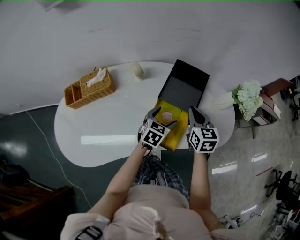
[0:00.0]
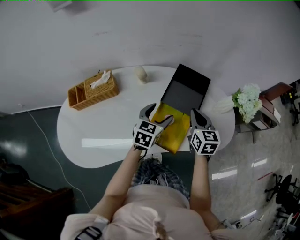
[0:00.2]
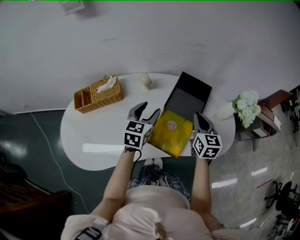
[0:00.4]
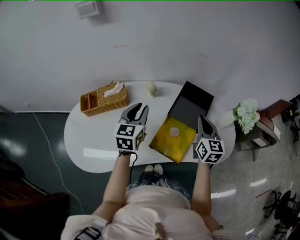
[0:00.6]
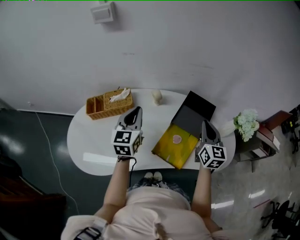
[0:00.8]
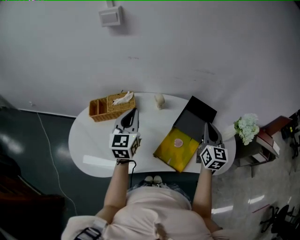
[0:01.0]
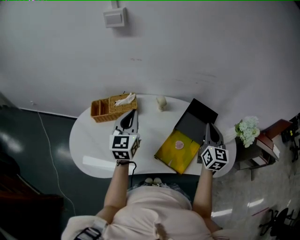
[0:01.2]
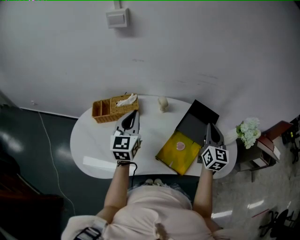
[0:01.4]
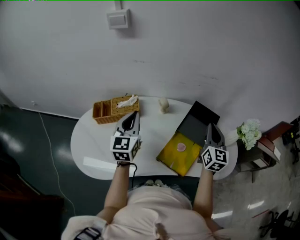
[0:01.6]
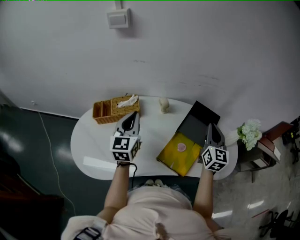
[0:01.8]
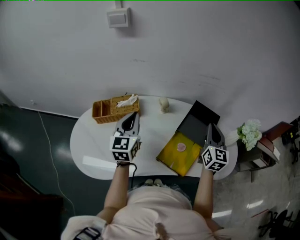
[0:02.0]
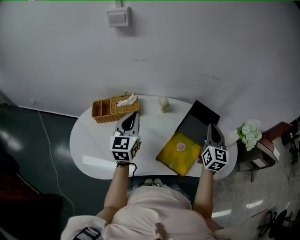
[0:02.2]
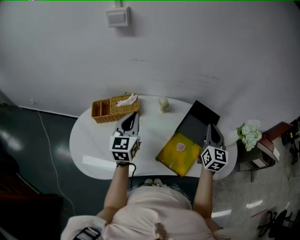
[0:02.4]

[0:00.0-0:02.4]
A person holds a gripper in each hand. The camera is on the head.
0:00.0 to 0:01.2: The right gripper goes approximately 15 cm upward, and changes its angle by about 20 degrees; the left gripper travels to the left and upward by about 35 cm, tips its fingers upward by some 30 degrees, and closes up.
0:01.2 to 0:02.4: The grippers make only small movements.

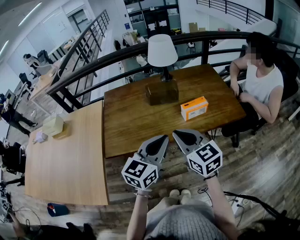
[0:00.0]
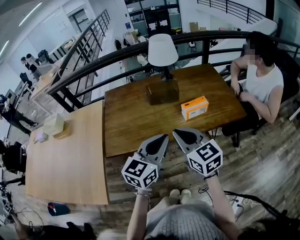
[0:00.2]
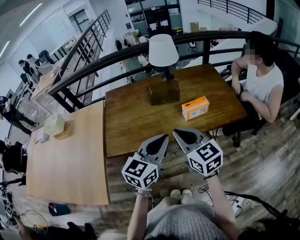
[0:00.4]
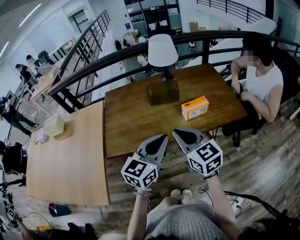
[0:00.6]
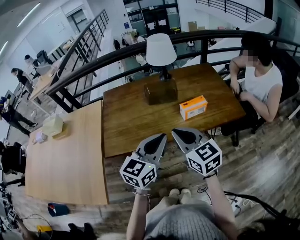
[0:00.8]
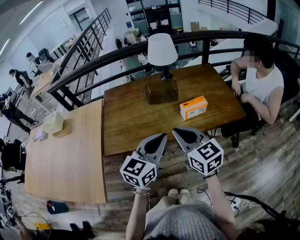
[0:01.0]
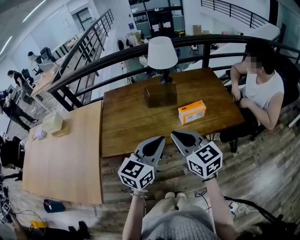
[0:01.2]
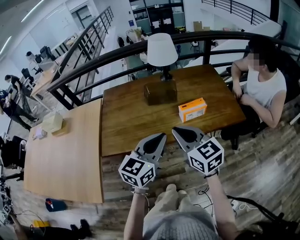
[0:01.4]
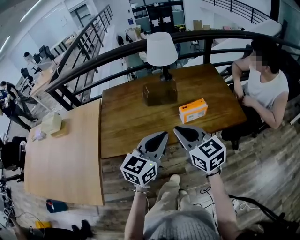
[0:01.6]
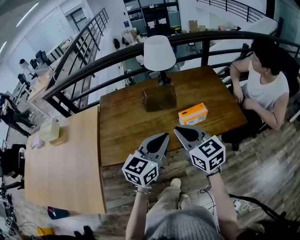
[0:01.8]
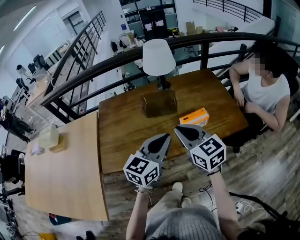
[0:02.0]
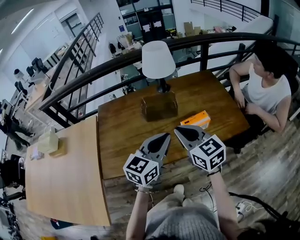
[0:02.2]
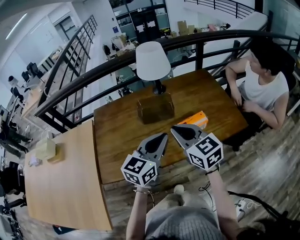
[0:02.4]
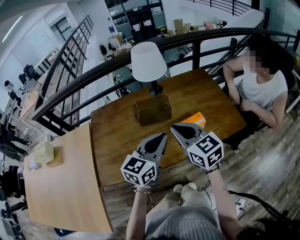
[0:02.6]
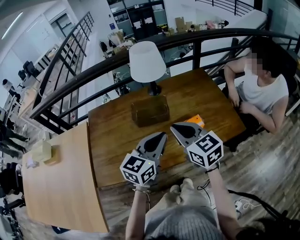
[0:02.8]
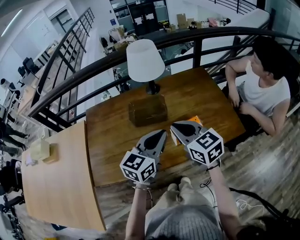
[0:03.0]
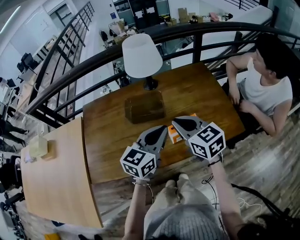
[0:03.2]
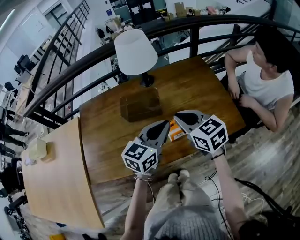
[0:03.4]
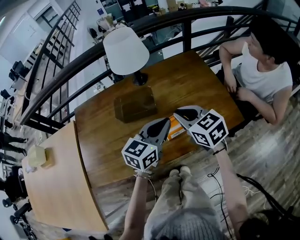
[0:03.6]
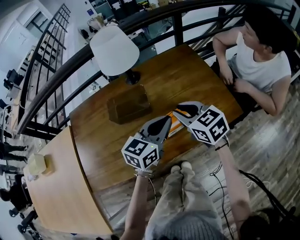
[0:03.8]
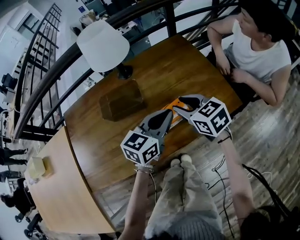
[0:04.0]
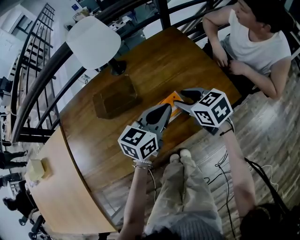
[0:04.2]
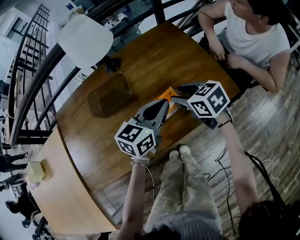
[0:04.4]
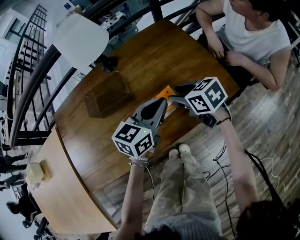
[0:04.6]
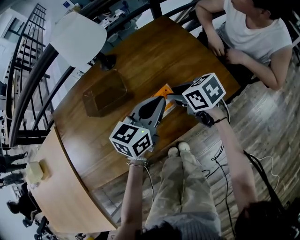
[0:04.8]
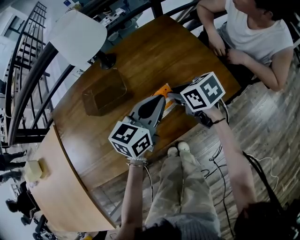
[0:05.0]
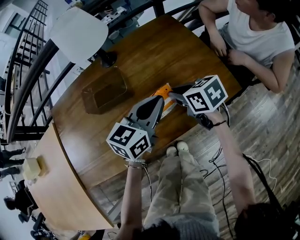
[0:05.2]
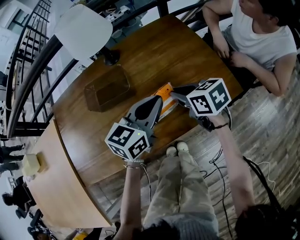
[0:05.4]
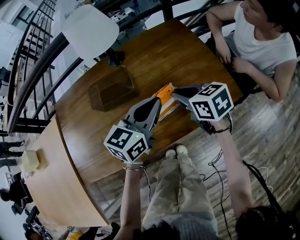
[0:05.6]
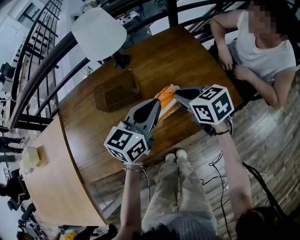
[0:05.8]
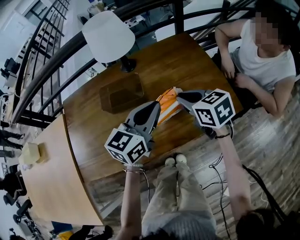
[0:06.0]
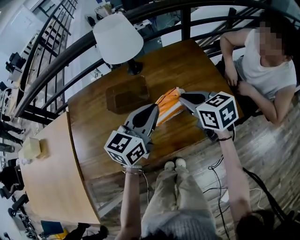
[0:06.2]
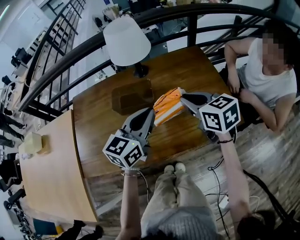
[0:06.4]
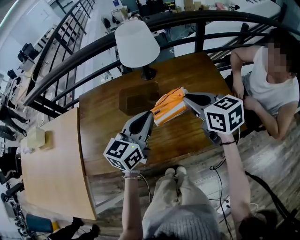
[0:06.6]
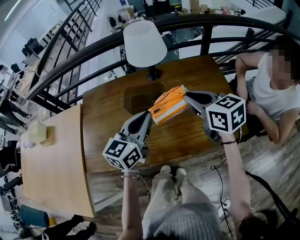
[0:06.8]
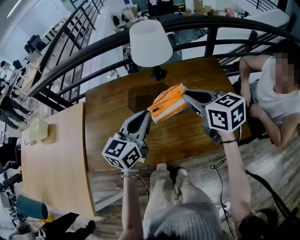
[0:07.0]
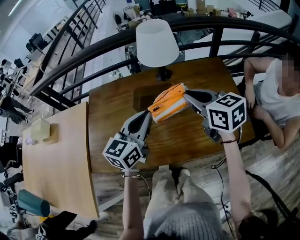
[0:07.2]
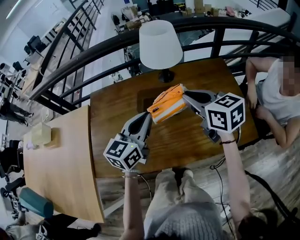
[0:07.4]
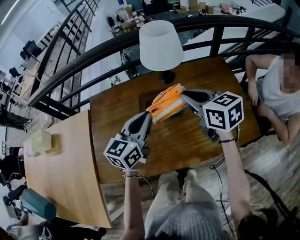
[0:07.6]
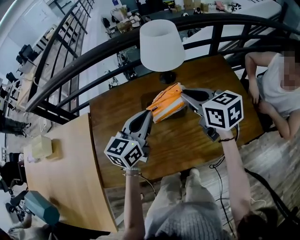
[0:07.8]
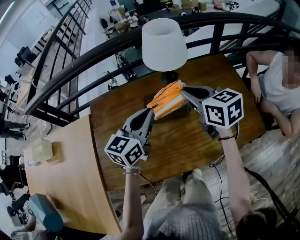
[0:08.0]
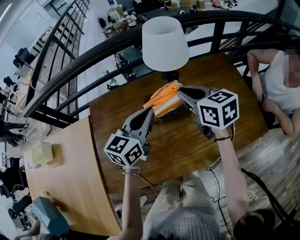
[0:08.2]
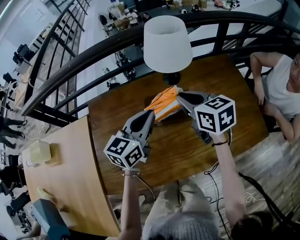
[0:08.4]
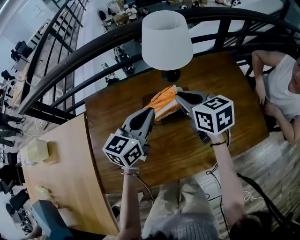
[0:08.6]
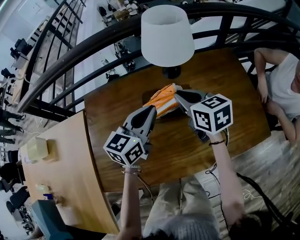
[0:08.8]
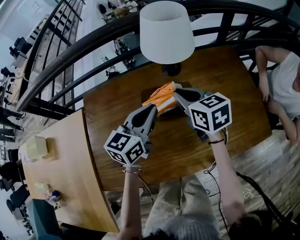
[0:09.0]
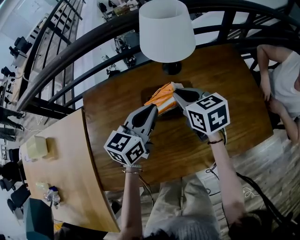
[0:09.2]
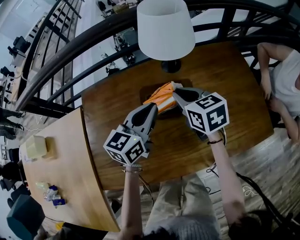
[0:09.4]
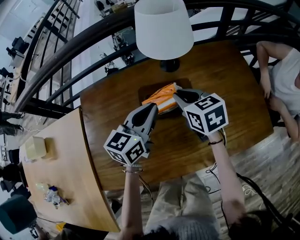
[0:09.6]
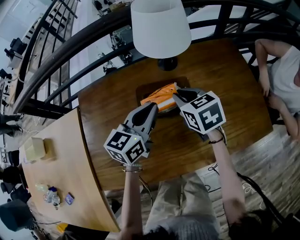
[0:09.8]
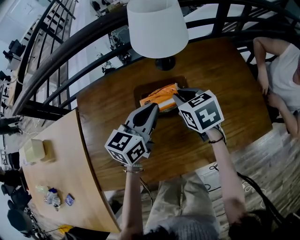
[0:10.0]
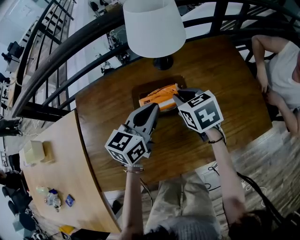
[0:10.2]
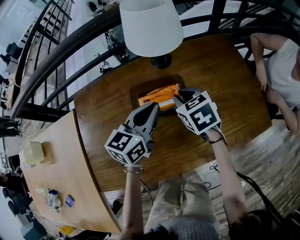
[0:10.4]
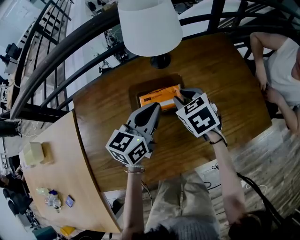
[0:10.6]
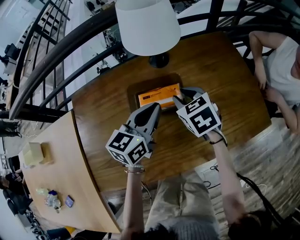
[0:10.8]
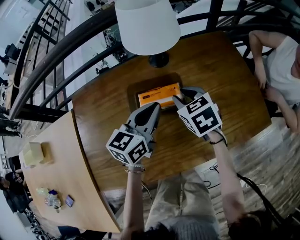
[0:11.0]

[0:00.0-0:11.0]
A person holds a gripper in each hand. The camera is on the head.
0:00.0 to 0:01.6: There are only small adjustments of the grippers.
0:01.6 to 0:03.2: The grippers both shift forward by roughly 15 cm.
0:03.2 to 0:04.8: The right gripper travels downward and to the right by approximately 20 cm, turns by some 30 degrees, and opens. Meanwhile the left gripper heads to the right and downward, covering approximately 15 cm.
0:04.8 to 0:06.2: The left gripper shifts some 10 cm upward and to the left. Meanwhile the right gripper is displaced upward by approximately 10 cm, and closes its fingers.
0:06.2 to 0:07.8: The right gripper heads to the left, forward and upward, covering roughly 15 cm. Meanwhile the left gripper shifts roughly 20 cm to the left and forward.
0:07.8 to 0:09.4: The left gripper goes approximately 5 cm downward. Meanwhile the right gripper shifts roughly 10 cm downward and to the left.
0:09.4 to 0:11.0: The right gripper moves some 5 cm, while the left gripper moves to the right, some 5 cm.

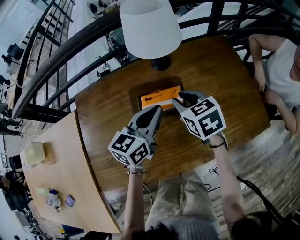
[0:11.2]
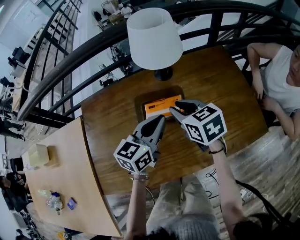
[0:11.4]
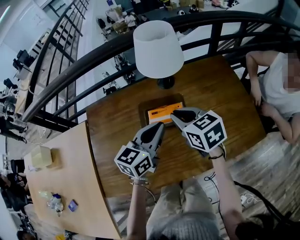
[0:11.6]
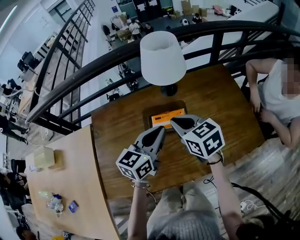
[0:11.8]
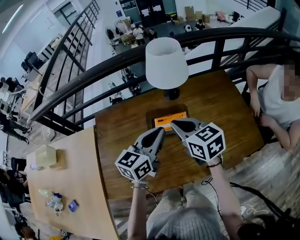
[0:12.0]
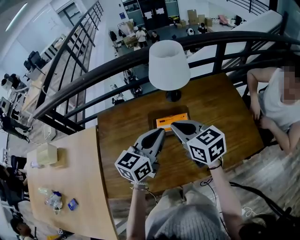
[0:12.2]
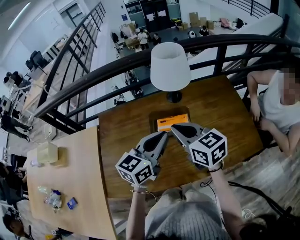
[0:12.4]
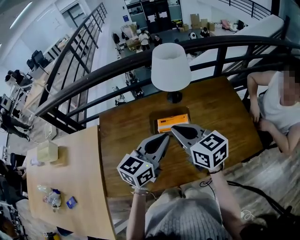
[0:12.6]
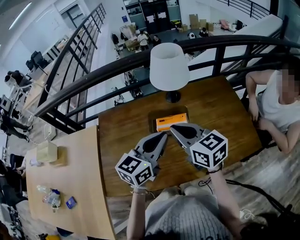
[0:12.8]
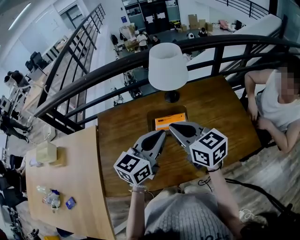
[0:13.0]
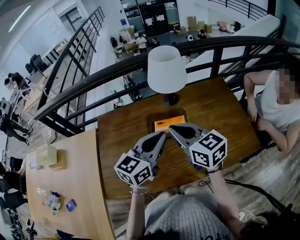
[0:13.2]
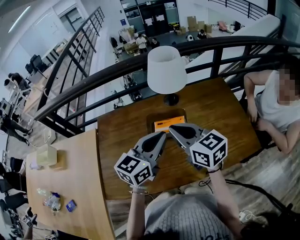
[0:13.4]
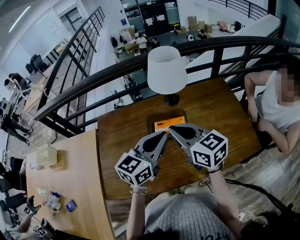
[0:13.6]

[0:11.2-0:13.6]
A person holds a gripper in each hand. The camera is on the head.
0:11.2 to 0:12.4: The two grippers go roughly 15 cm upward and backward. The right gripper rotates approximately 20 degrees, and closes.
0:12.4 to 0:13.6: The grippers move only a little.

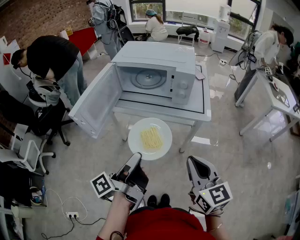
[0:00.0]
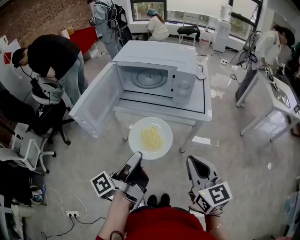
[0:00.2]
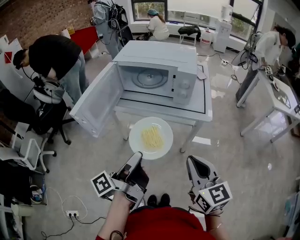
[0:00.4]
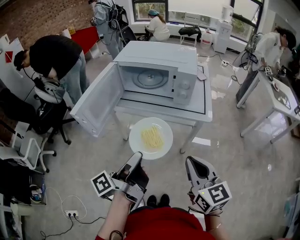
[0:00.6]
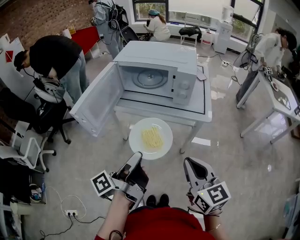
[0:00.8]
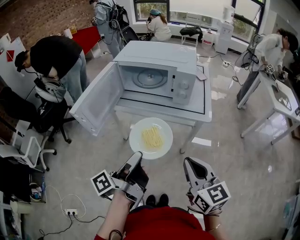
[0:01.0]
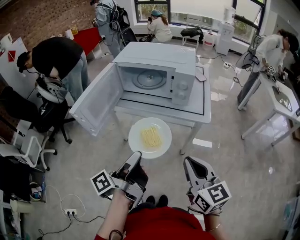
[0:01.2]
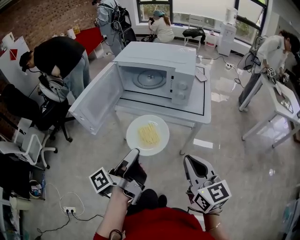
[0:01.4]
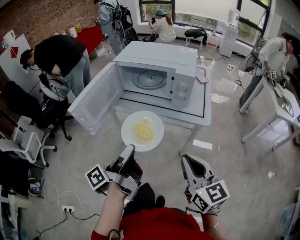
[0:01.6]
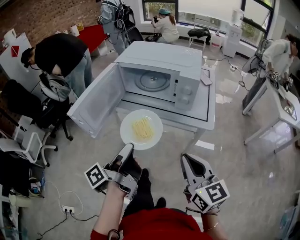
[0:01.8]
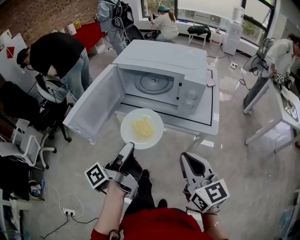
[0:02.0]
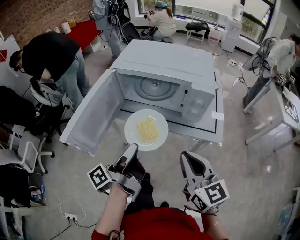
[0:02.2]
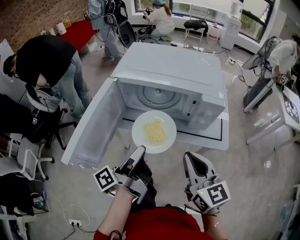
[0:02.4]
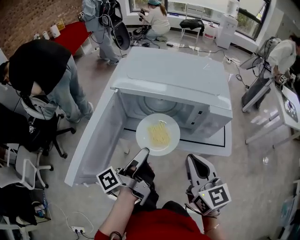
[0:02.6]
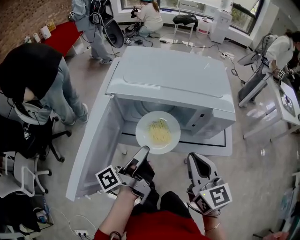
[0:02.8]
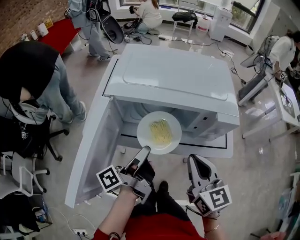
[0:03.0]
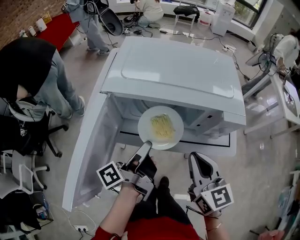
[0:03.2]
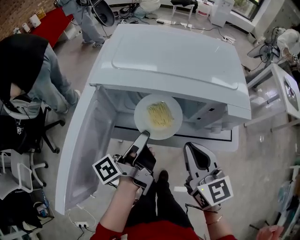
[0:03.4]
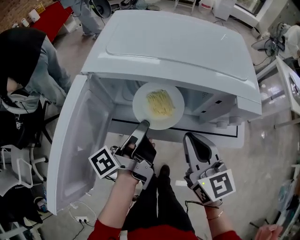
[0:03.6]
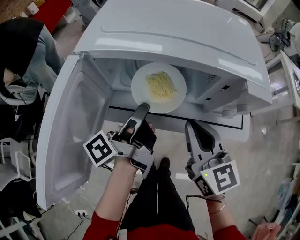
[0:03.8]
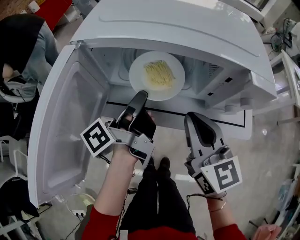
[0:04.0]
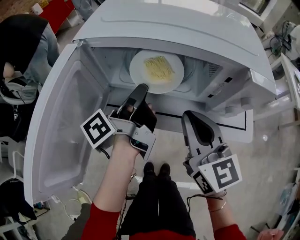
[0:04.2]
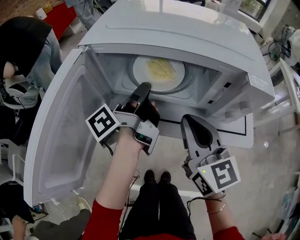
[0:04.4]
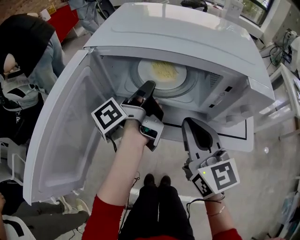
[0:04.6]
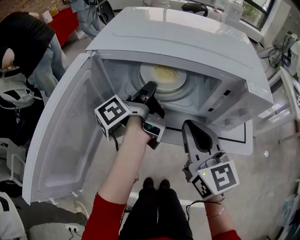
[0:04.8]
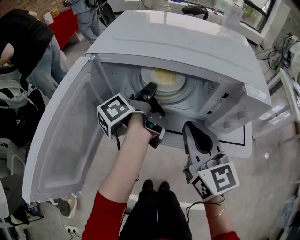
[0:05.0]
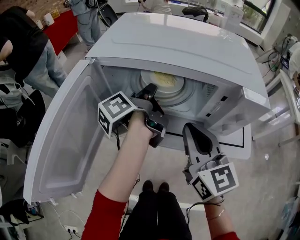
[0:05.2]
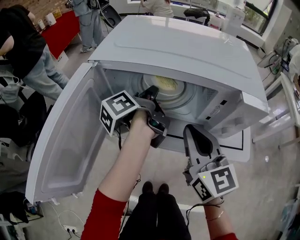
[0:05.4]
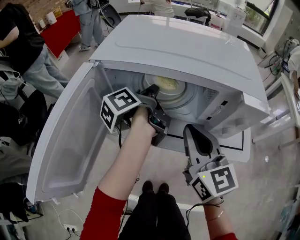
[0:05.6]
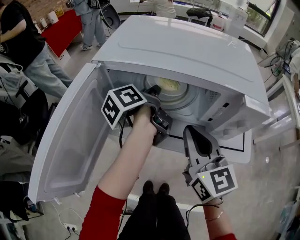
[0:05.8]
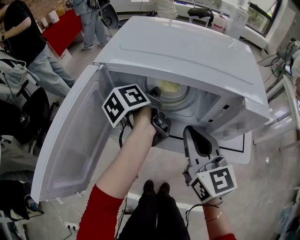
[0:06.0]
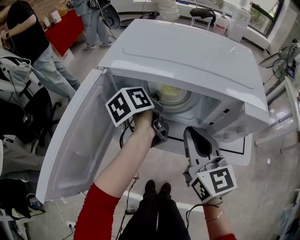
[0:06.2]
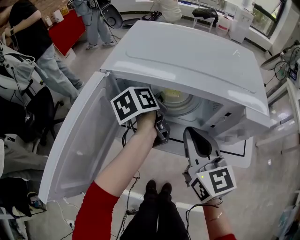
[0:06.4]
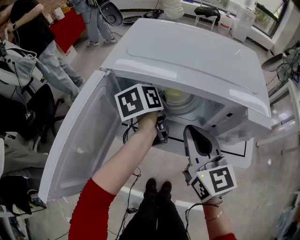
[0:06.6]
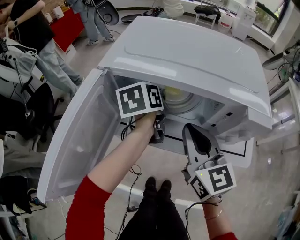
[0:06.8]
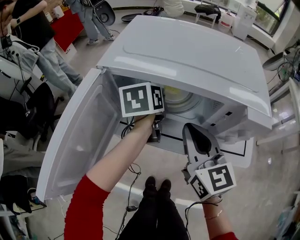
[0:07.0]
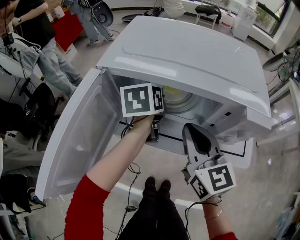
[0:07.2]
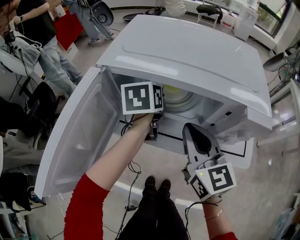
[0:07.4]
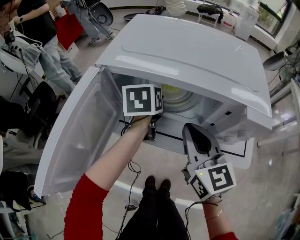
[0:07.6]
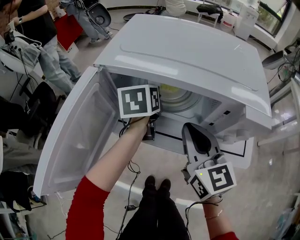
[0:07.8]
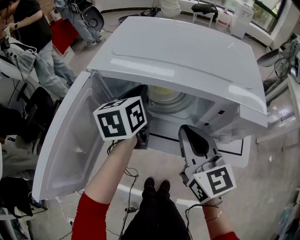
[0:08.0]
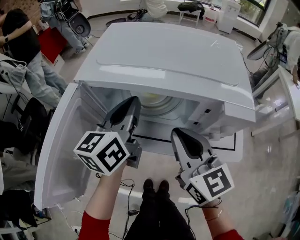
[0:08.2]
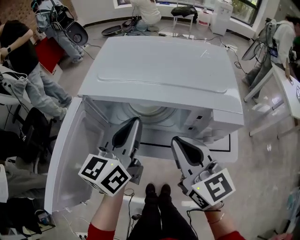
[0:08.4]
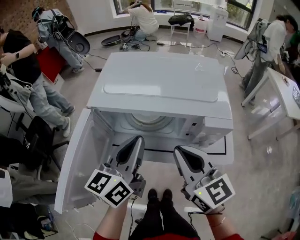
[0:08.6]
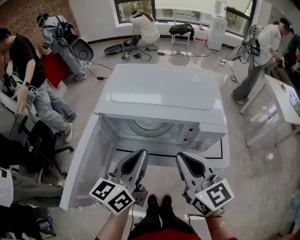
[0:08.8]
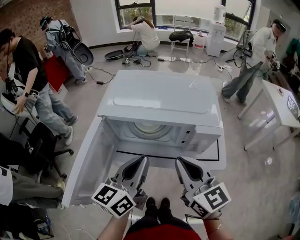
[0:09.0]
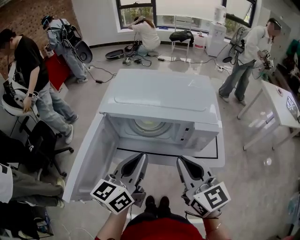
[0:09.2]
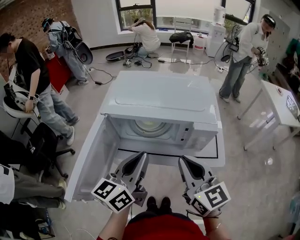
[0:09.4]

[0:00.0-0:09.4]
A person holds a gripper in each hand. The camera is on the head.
0:00.0 to 0:01.6: The grippers make only small movements.
0:01.6 to 0:03.2: The grippers both shift forward by roughly 25 cm.
0:03.2 to 0:04.8: The left gripper heads forward, covering some 15 cm. The right gripper shifts some 10 cm forward and downward.
0:04.8 to 0:06.2: The left gripper swivels some 40 degrees.
0:06.2 to 0:07.8: The left gripper turns by some 40 degrees.
0:07.8 to 0:09.4: The left gripper heads backward and upward, covering approximately 25 cm, tips its fingers upward by roughly 40 degrees, and closes its fingers. Meanwhile the right gripper travels upward and backward by roughly 15 cm.
